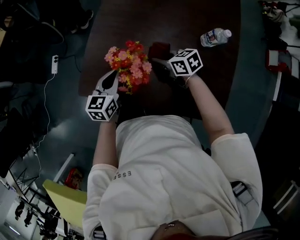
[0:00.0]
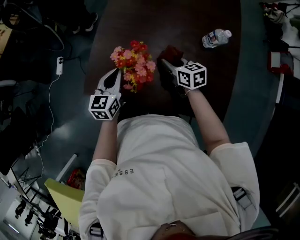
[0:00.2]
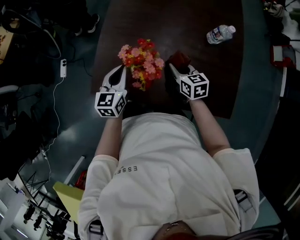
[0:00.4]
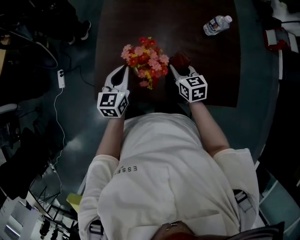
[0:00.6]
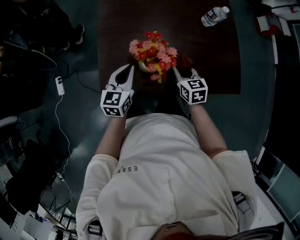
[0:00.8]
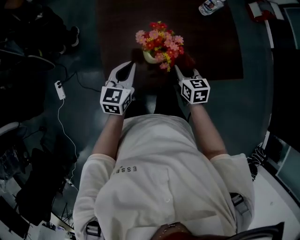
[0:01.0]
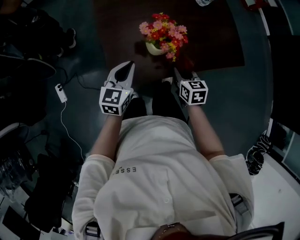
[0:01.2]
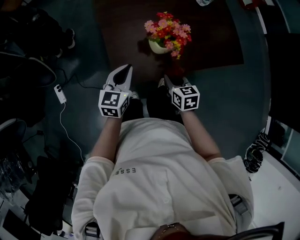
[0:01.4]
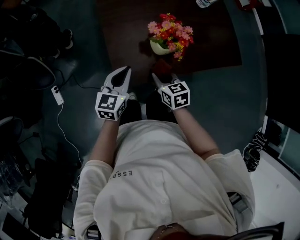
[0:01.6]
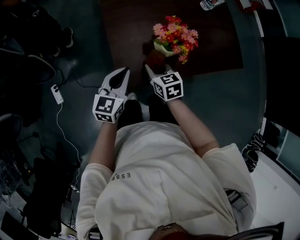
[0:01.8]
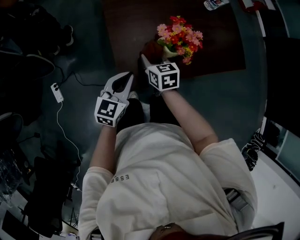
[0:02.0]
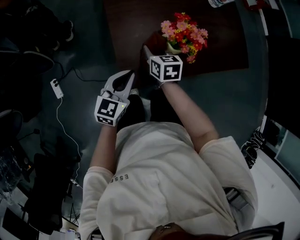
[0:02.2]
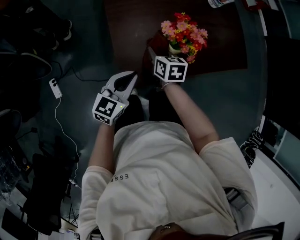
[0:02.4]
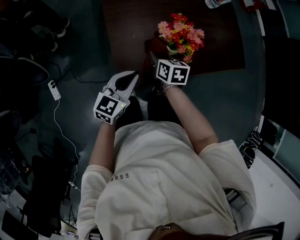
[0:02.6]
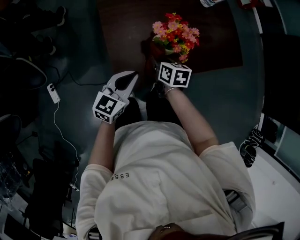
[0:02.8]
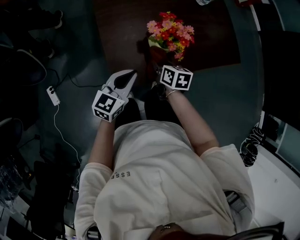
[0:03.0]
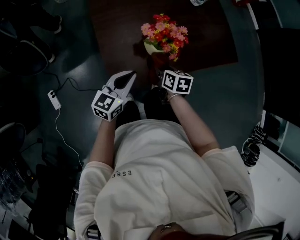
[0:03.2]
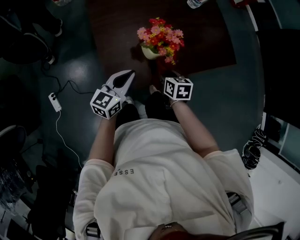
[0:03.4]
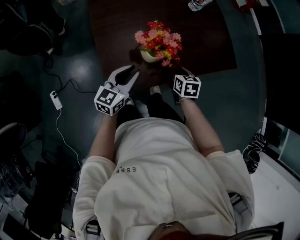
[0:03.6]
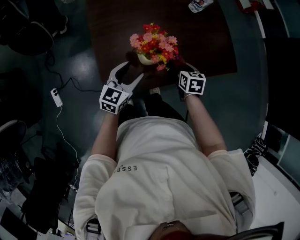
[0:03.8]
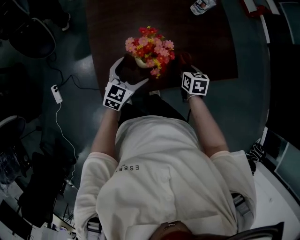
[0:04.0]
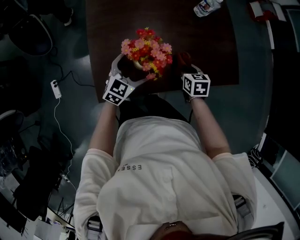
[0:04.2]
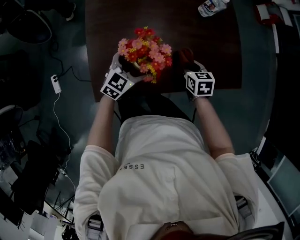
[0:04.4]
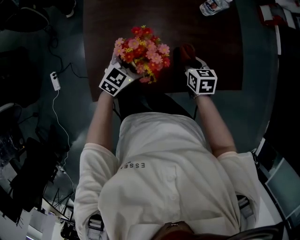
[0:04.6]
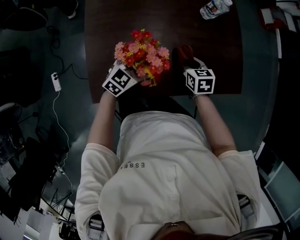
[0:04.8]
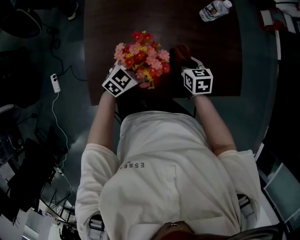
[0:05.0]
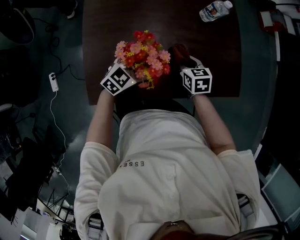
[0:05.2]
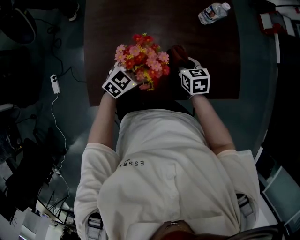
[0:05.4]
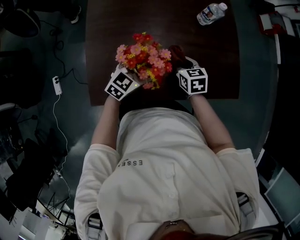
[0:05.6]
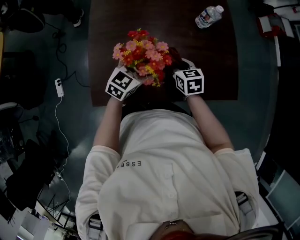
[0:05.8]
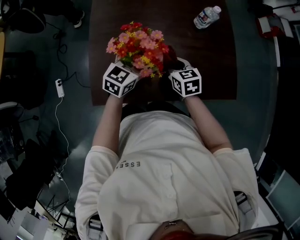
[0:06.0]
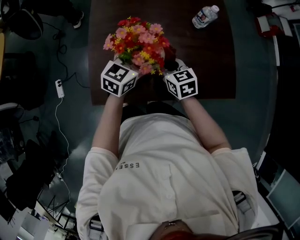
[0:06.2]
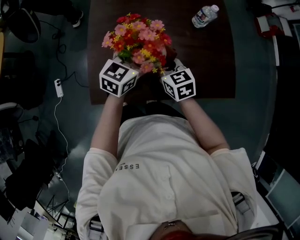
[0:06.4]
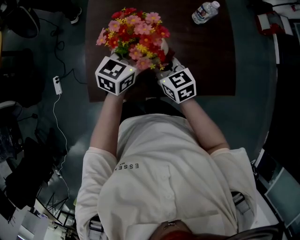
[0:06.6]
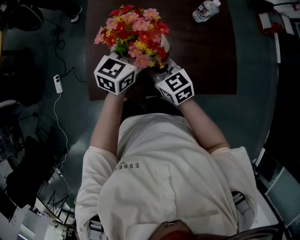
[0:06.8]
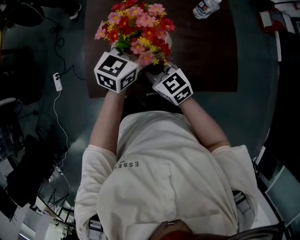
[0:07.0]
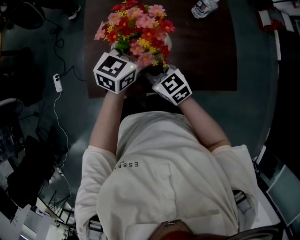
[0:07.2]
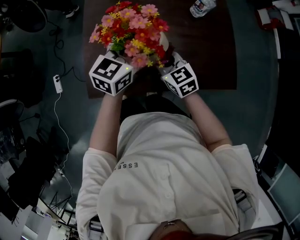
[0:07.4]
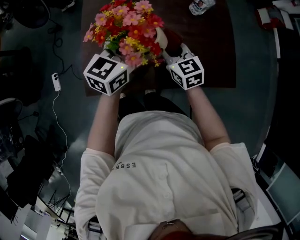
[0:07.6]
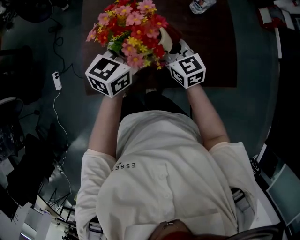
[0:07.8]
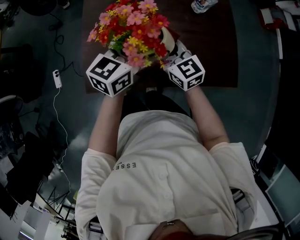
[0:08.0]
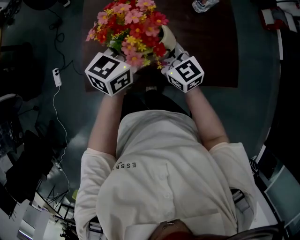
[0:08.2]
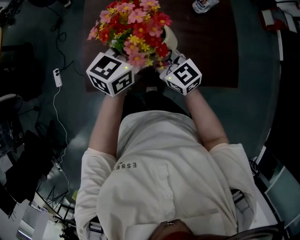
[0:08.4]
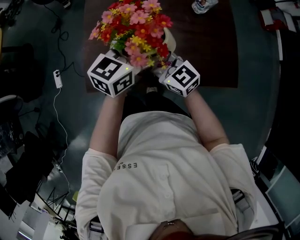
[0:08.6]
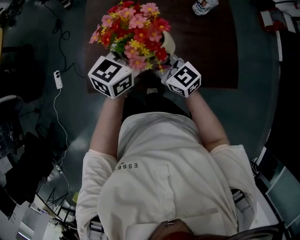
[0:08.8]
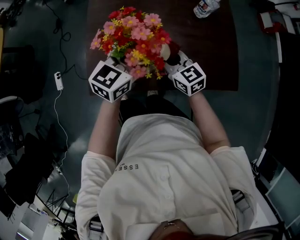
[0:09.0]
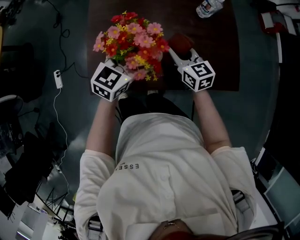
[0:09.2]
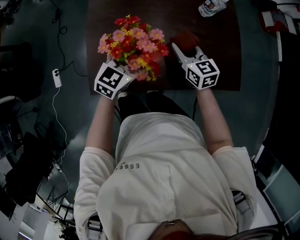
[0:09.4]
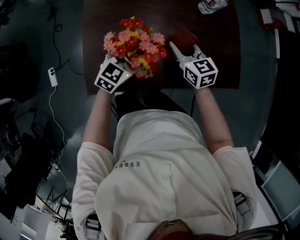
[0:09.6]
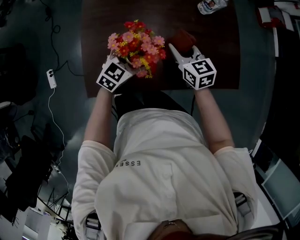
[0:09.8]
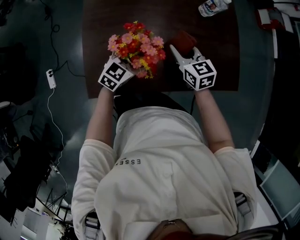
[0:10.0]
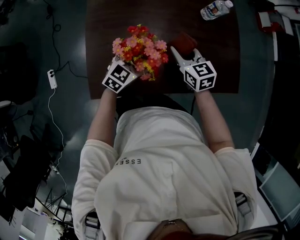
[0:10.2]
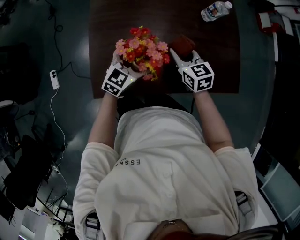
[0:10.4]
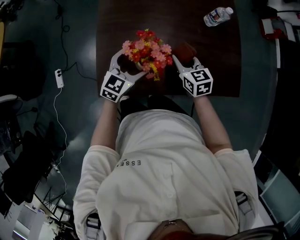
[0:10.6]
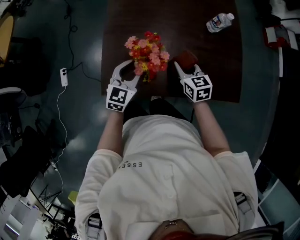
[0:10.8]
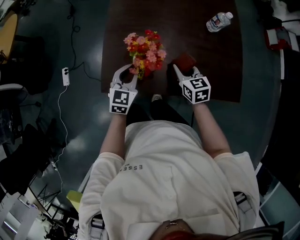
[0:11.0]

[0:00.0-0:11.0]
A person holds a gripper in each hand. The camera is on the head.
0:00.0 to 0:01.6: The right gripper ends up about 25 cm from where it was, and rotates roughly 50 degrees, while the left gripper shifts by some 15 cm, and changes its angle by approximately 40 degrees.
0:01.6 to 0:03.2: The right gripper shifts approximately 5 cm forward, reaches about 10 cm to the left, then returns, and turns by roughly 30 degrees.
0:03.2 to 0:04.8: The left gripper shifts some 20 cm forward, to the right and downward, turns by roughly 30 degrees, and opens. The right gripper goes about 20 cm forward and to the right, and changes its angle by roughly 30 degrees.
0:04.8 to 0:06.2: The left gripper goes roughly 10 cm upward, and changes its angle by about 20 degrees. Meanwhile the right gripper travels to the left and upward by approximately 10 cm.
0:06.2 to 0:07.8: The grippers both shift upward by roughly 5 cm. The right gripper goes to the left and returns, roughly 5 cm each way.
0:07.8 to 0:09.4: The left gripper moves downward, approximately 10 cm.
0:09.4 to 0:11.0: The left gripper heads to the left and backward, covering some 10 cm, swivels some 30 degrees, and closes up. Meanwhile the right gripper goes some 5 cm backward.

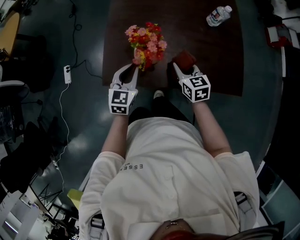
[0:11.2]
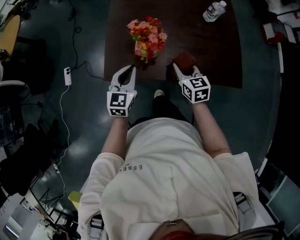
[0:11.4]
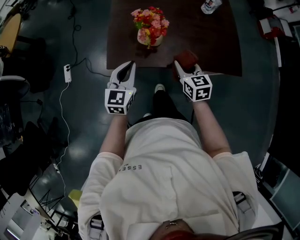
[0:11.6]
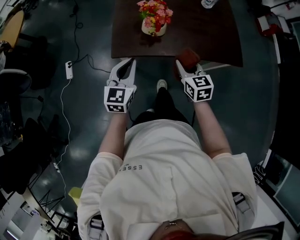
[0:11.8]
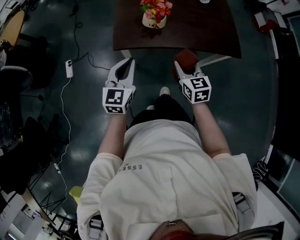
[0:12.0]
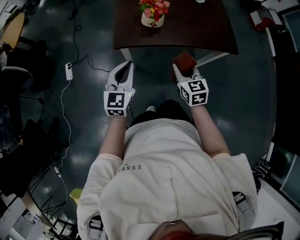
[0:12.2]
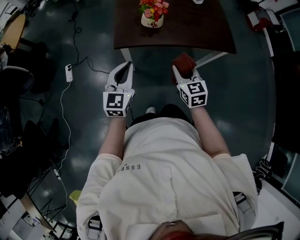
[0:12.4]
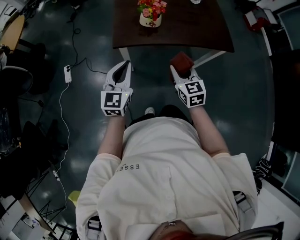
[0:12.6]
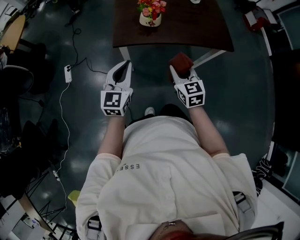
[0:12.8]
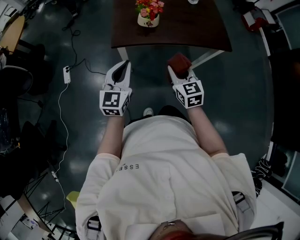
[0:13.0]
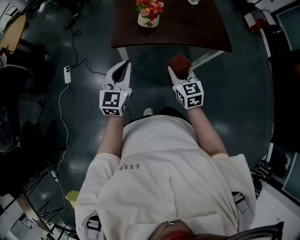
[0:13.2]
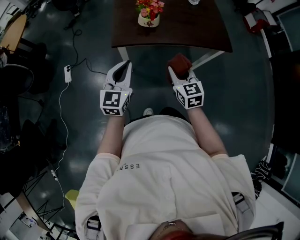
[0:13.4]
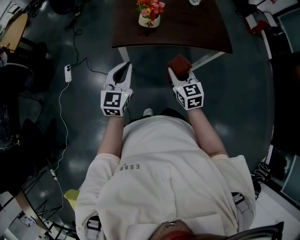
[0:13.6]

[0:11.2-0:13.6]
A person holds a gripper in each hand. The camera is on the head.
0:11.2 to 0:12.4: The left gripper shifts roughly 25 cm backward and upward. Meanwhile the right gripper shifts about 25 cm backward.
0:12.4 to 0:13.6: The grippers move only a little.

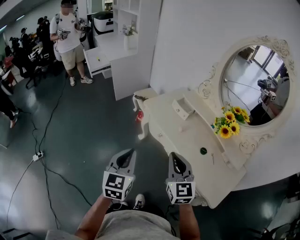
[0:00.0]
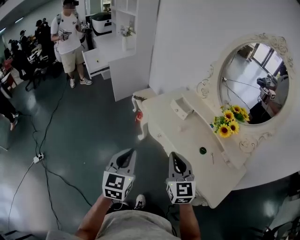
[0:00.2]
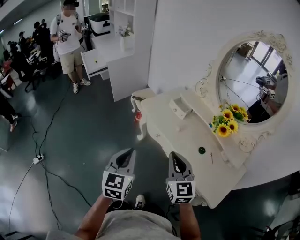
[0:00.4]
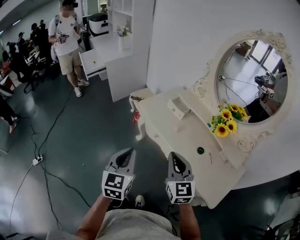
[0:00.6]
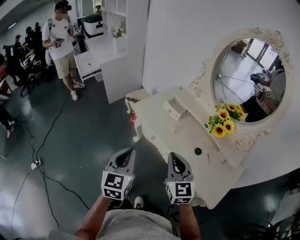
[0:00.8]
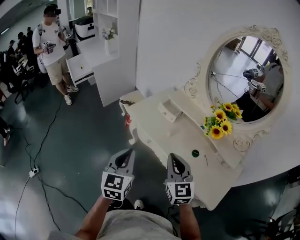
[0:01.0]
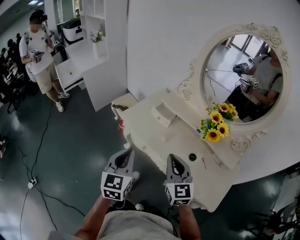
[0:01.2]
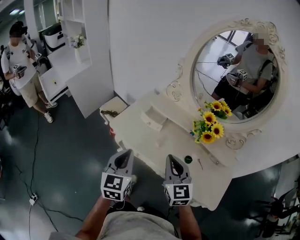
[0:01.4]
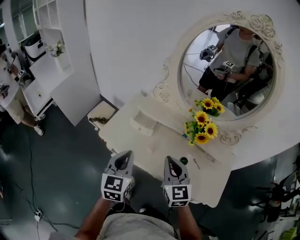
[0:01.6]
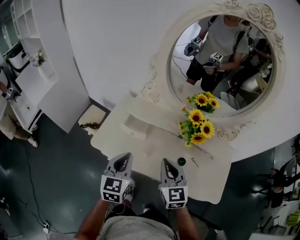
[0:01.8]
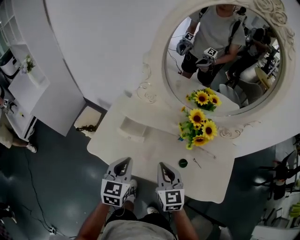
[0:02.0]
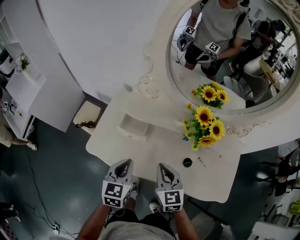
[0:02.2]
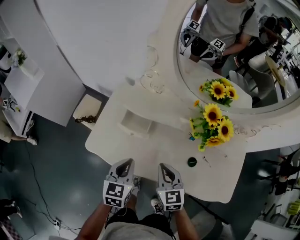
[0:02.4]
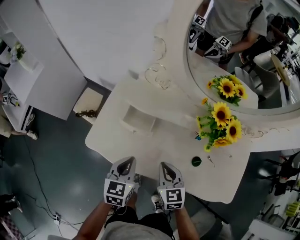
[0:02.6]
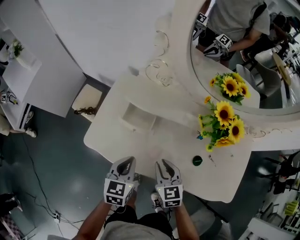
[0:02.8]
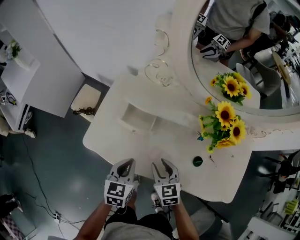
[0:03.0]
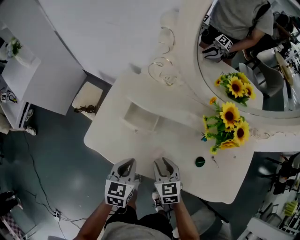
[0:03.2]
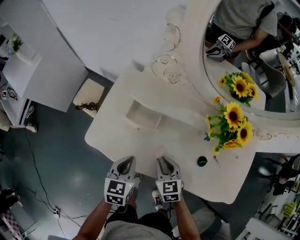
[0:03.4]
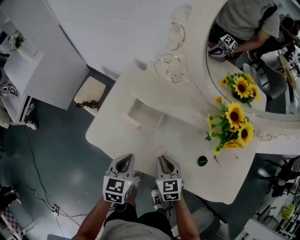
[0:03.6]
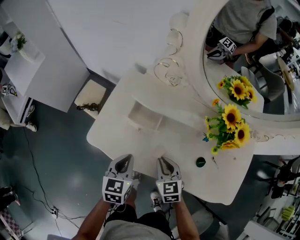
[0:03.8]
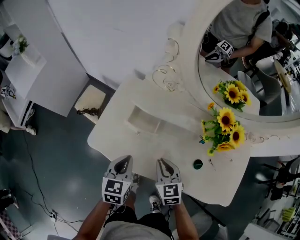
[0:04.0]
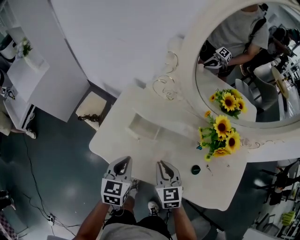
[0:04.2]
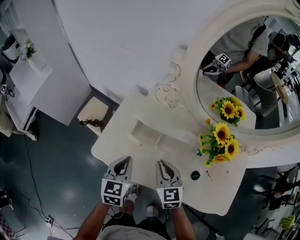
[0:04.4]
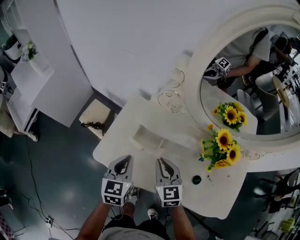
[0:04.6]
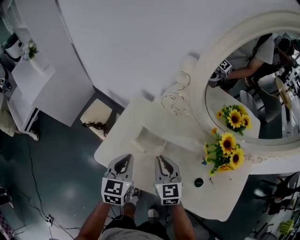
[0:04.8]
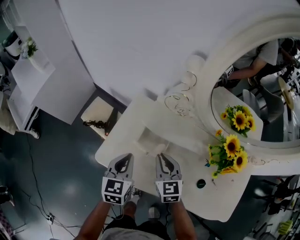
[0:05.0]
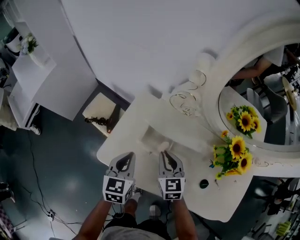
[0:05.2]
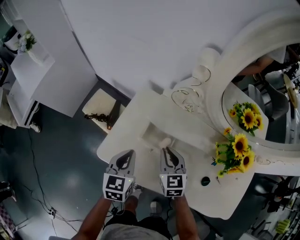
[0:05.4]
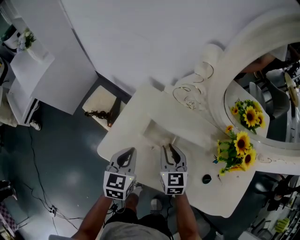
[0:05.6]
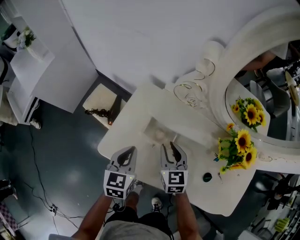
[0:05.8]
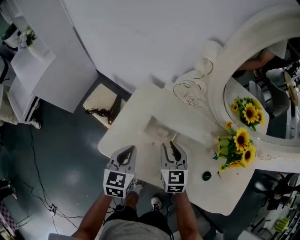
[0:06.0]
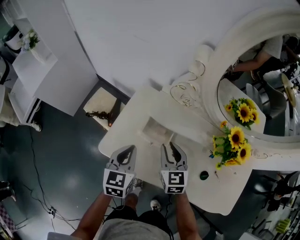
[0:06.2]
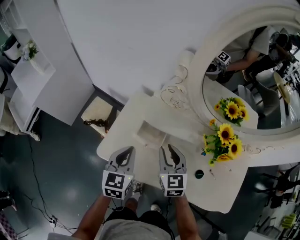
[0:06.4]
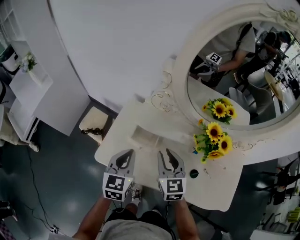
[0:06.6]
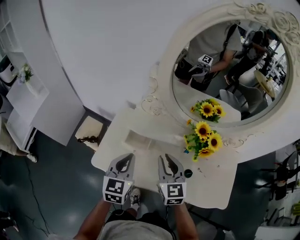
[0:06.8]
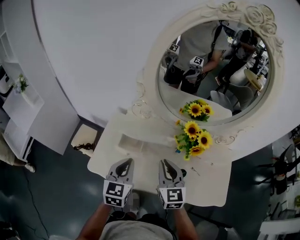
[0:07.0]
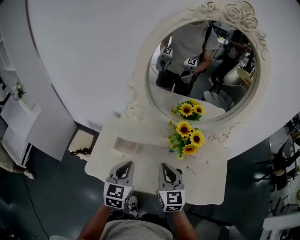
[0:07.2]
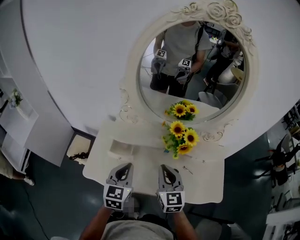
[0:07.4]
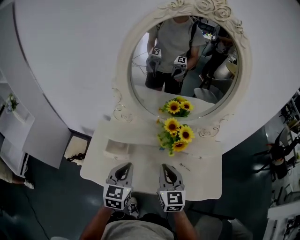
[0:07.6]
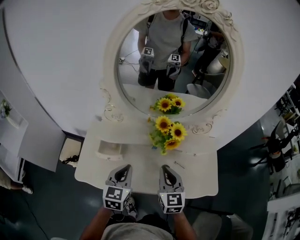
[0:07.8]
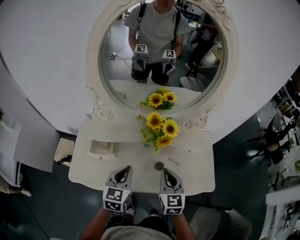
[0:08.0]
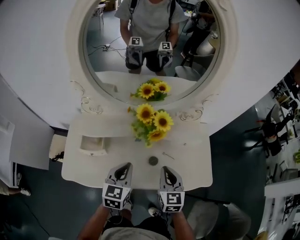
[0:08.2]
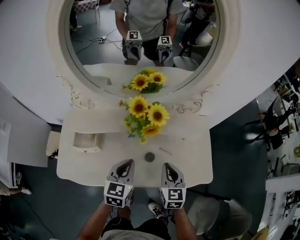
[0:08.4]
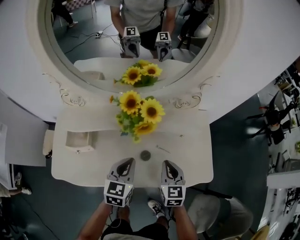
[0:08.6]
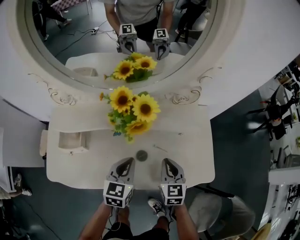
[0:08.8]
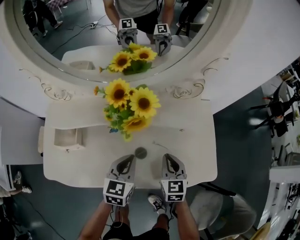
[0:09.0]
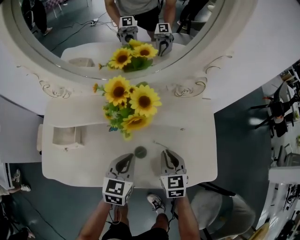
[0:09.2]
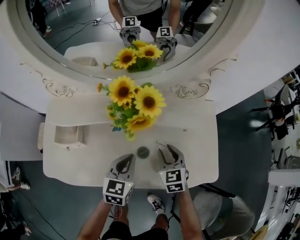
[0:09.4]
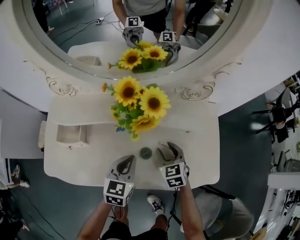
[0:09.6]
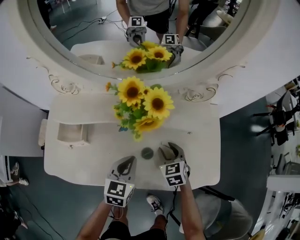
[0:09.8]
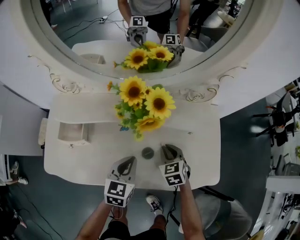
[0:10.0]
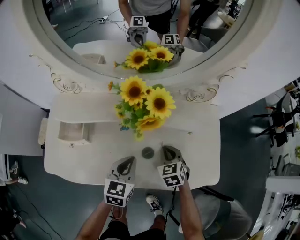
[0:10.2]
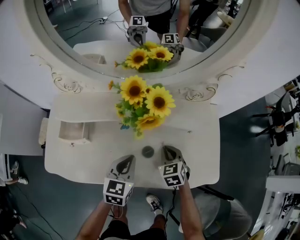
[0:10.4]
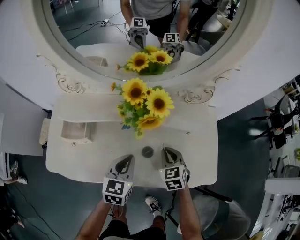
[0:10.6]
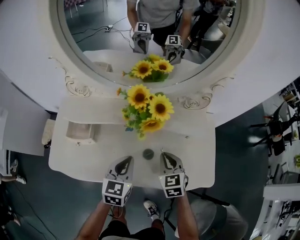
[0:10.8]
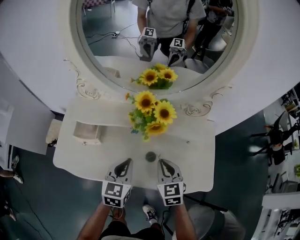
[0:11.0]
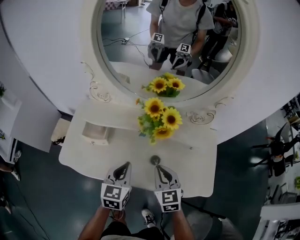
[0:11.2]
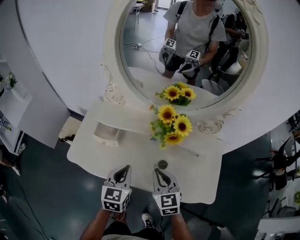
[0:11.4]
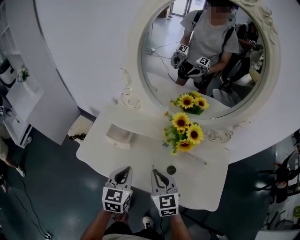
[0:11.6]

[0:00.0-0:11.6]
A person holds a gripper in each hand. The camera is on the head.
0:00.0 to 0:01.4: The two grippers go about 20 cm forward and to the right.
0:01.4 to 0:02.8: Both grippers travel together downward and forward, some 25 cm. The left gripper swivels about 30 degrees, while the right gripper swivels approximately 30 degrees.
0:02.8 to 0:04.4: The left gripper moves upward, roughly 5 cm; the right gripper moves upward and forward, some 10 cm, and opens and closes again.
0:04.4 to 0:05.8: The left gripper shifts roughly 5 cm forward. Meanwhile the right gripper goes some 10 cm forward.
0:05.8 to 0:07.2: Both grippers move upward, to the right and backward, approximately 25 cm. The left gripper turns by approximately 20 degrees. Meanwhile the right gripper rotates about 20 degrees, and closes.
0:07.2 to 0:08.8: The two grippers go some 30 cm to the right and downward. The right gripper rotates some 30 degrees. The left gripper changes its angle by some 20 degrees.
0:08.8 to 0:10.2: The right gripper is displaced downward by some 10 cm, changes its angle by roughly 30 degrees, and opens, then closes again.
0:10.2 to 0:11.6: The left gripper shifts by roughly 20 cm, and changes its angle by some 20 degrees, while the right gripper shifts about 20 cm upward, and rotates about 30 degrees.
